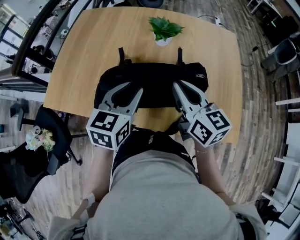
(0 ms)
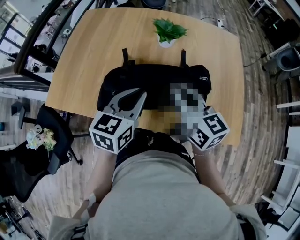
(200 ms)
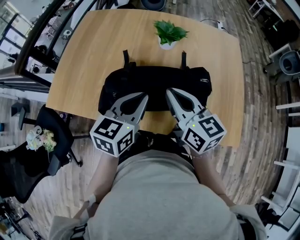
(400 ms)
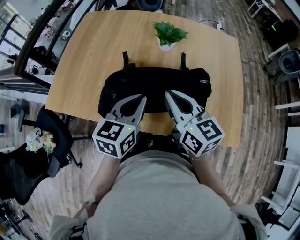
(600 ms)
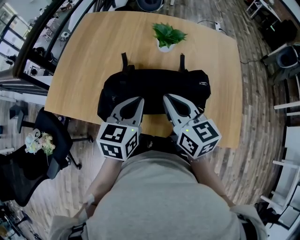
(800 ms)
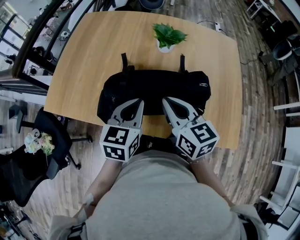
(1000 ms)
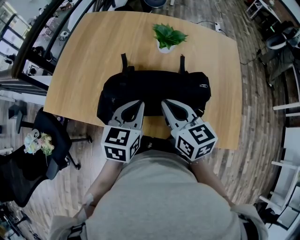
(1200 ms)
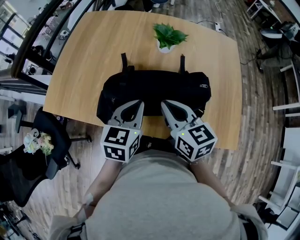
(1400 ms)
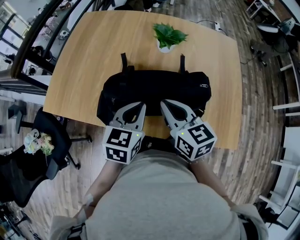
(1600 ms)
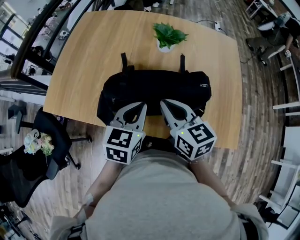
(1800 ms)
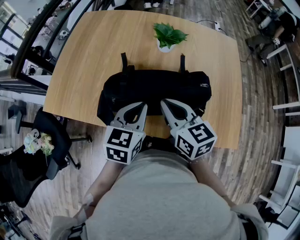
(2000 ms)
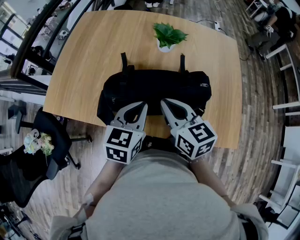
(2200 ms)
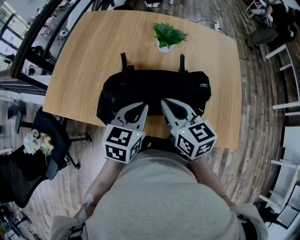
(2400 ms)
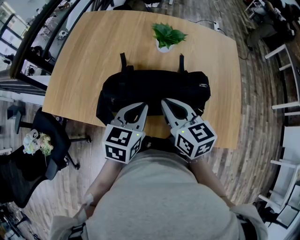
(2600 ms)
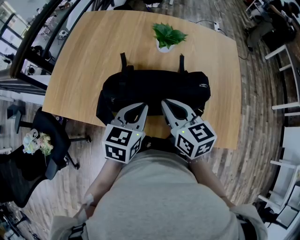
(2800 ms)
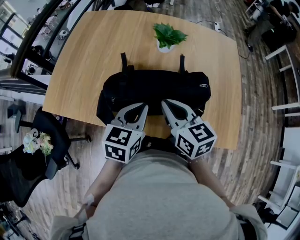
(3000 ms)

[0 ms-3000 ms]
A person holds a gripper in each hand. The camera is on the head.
0 ms to 1600 ms: The left gripper closes up. Meanwhile the right gripper moves to the left, roughly 5 cm.
1600 ms to 3000 ms: The two grippers keep their place.

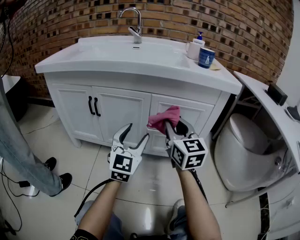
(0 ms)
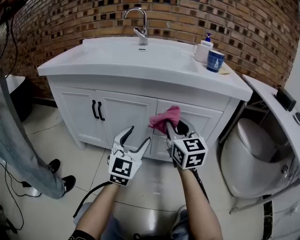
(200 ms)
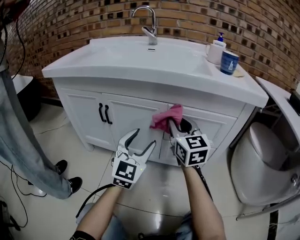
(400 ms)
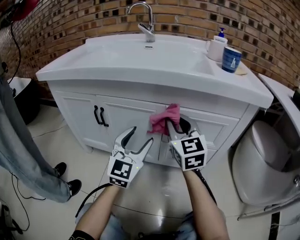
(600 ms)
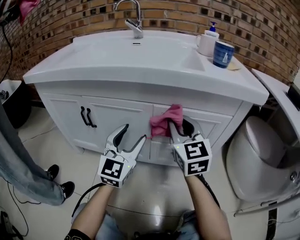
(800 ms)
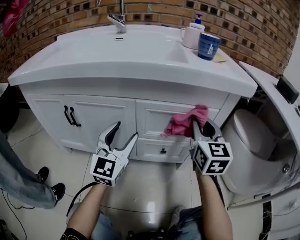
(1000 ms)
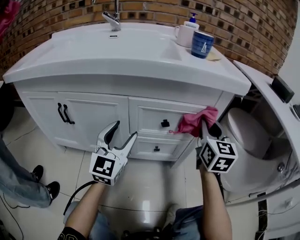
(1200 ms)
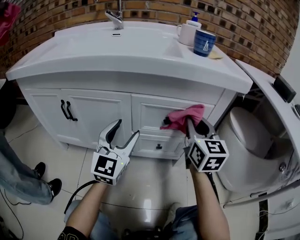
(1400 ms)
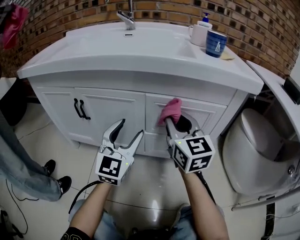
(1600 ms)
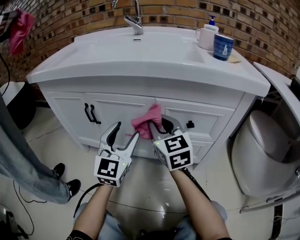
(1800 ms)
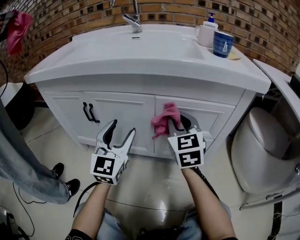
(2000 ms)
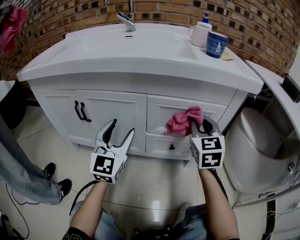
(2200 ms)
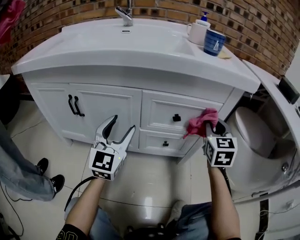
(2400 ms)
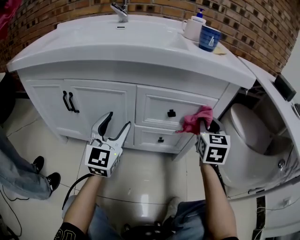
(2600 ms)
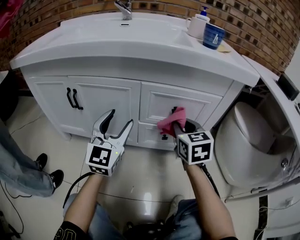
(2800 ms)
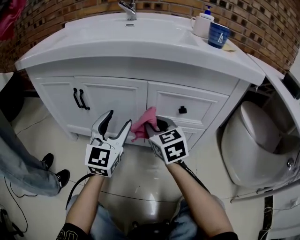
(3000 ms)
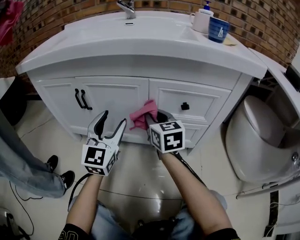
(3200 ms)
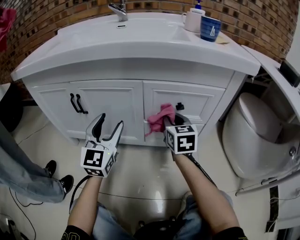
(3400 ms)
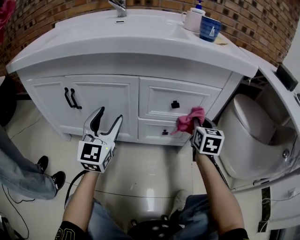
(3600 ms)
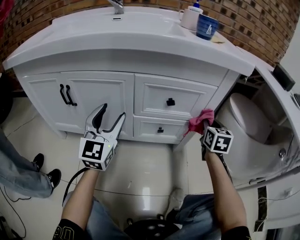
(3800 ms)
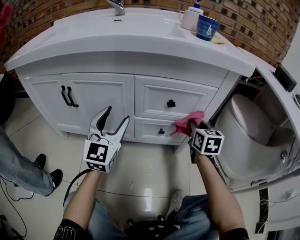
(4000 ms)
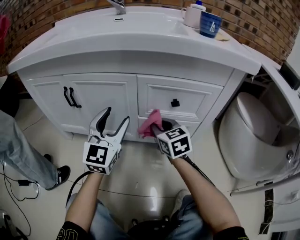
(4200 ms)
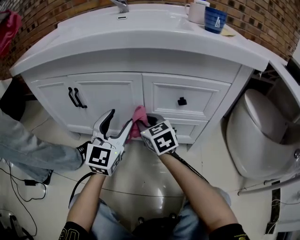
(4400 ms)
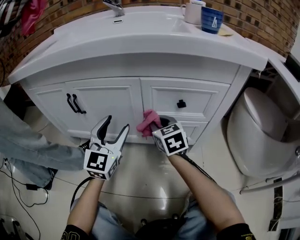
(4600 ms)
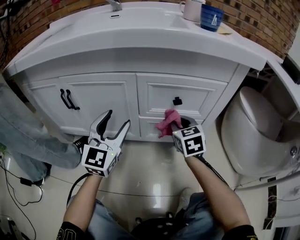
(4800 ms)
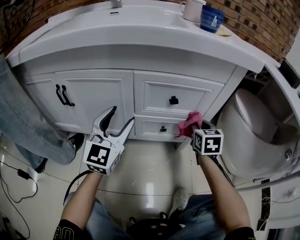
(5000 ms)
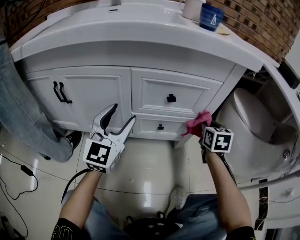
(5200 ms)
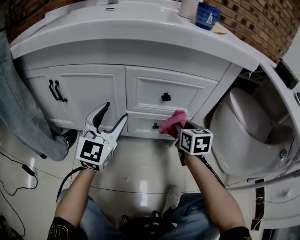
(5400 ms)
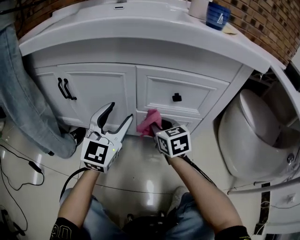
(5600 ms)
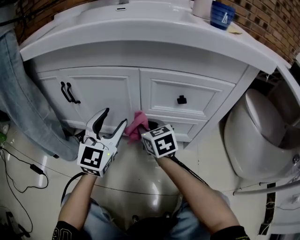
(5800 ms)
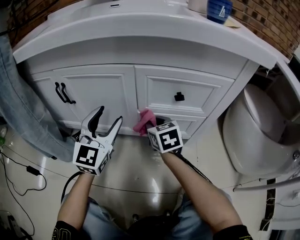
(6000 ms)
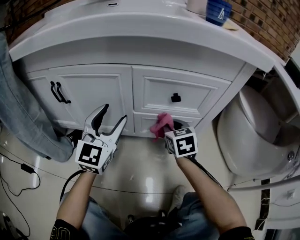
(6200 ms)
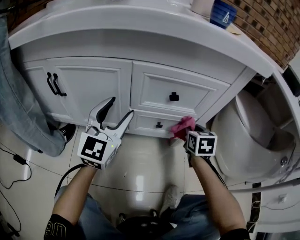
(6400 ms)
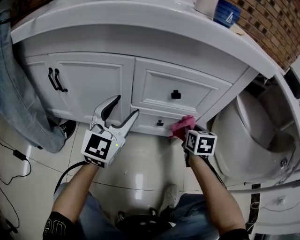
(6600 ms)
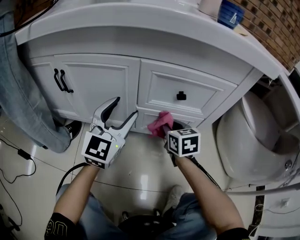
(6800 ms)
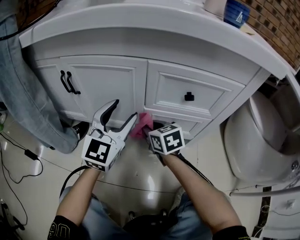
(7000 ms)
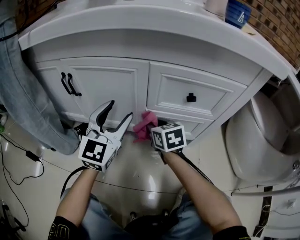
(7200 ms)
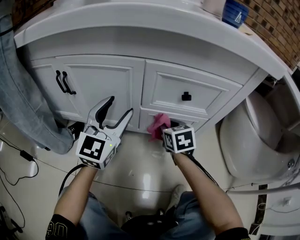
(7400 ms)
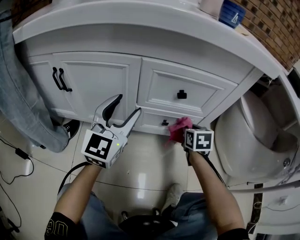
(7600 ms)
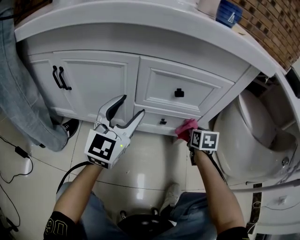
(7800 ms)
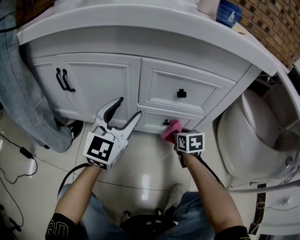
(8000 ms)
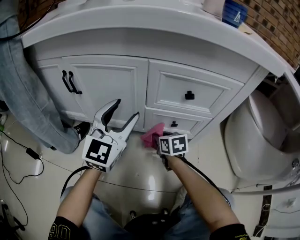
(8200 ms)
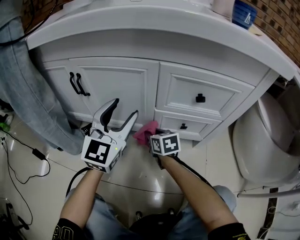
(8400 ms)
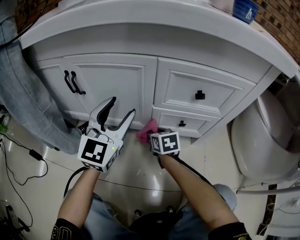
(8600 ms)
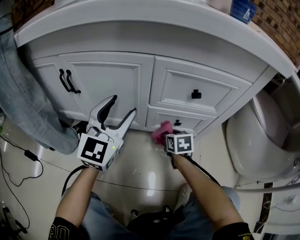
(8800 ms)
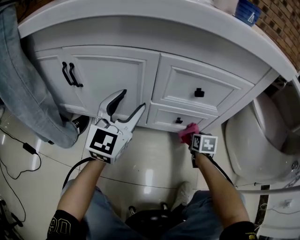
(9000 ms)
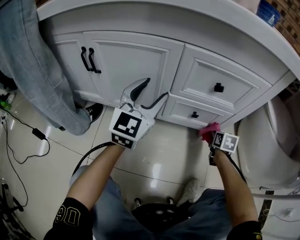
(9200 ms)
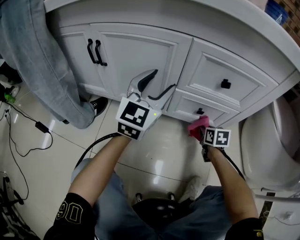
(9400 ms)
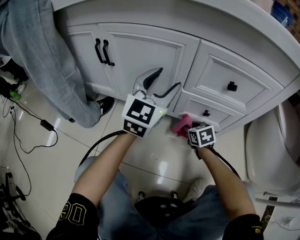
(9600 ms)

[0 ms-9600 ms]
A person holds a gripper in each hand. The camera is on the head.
0 ms to 1600 ms: The right gripper goes left and right, about 25 cm each way, reversing 2 times. The left gripper heads forward, covering some 5 cm.
1600 ms to 3200 ms: The right gripper goes left and right, some 25 cm each way, reversing 2 times. Meanwhile the left gripper goes left and right, approximately 10 cm each way, reversing 2 times.
3200 ms to 4800 ms: The right gripper swings left and right, some 35 cm each way, with 2 reversals; the left gripper heads to the right, covering approximately 5 cm.
4800 ms to 6400 ms: The right gripper moves left and right over roughly 30 cm, changing direction 2 times; the left gripper moves left and right over some 5 cm, changing direction 2 times.
6400 ms to 8000 ms: The right gripper swings left and right, some 25 cm each way, with 2 reversals.
8000 ms to 9600 ms: The left gripper moves forward, approximately 5 cm, while the right gripper goes left and right, approximately 30 cm each way, reversing 2 times, and changes its angle by some 20 degrees.

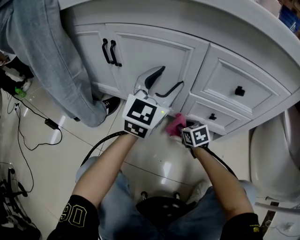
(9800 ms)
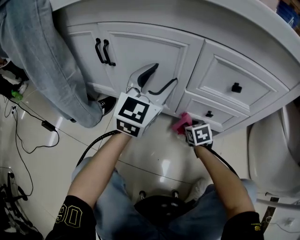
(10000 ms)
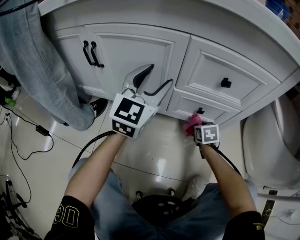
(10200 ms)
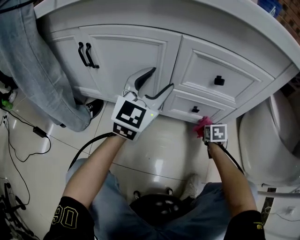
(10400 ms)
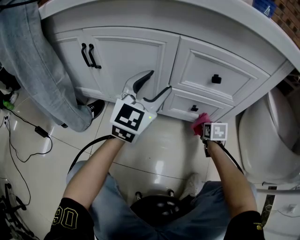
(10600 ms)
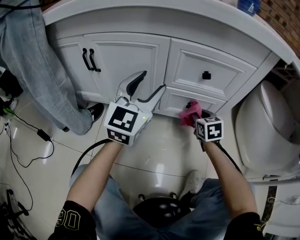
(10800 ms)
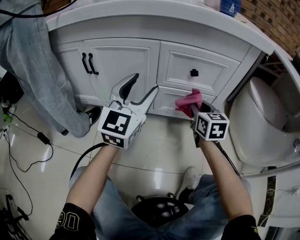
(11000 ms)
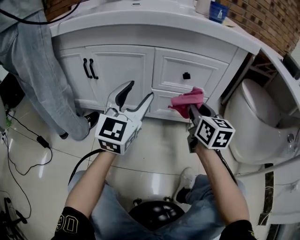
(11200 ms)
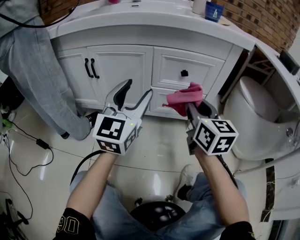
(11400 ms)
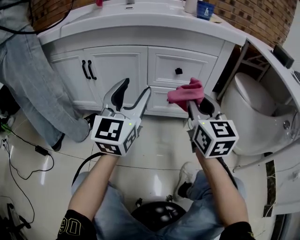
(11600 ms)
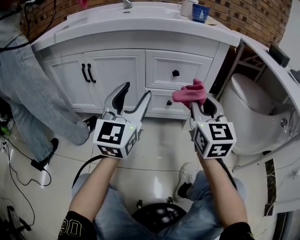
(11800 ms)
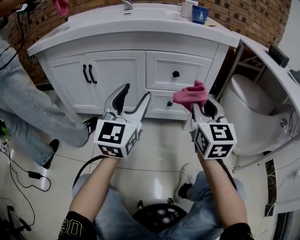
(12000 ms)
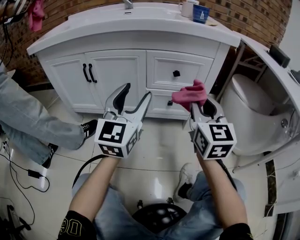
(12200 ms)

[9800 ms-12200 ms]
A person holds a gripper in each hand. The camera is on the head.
9800 ms to 11000 ms: The right gripper goes about 25 cm upward, and rotates approximately 40 degrees, while the left gripper ends up roughly 10 cm from where it was.
11000 ms to 12200 ms: The left gripper shifts roughly 10 cm backward. The right gripper travels upward and backward by approximately 20 cm, and changes its angle by about 20 degrees.

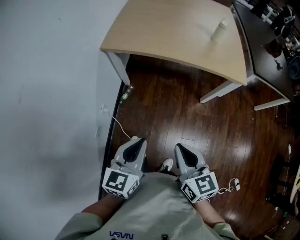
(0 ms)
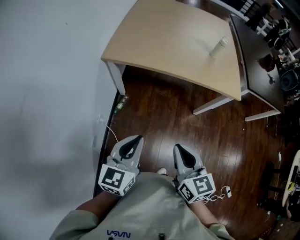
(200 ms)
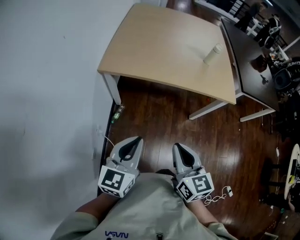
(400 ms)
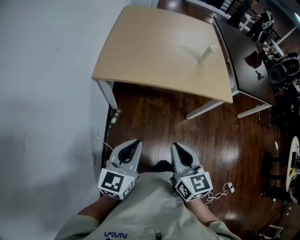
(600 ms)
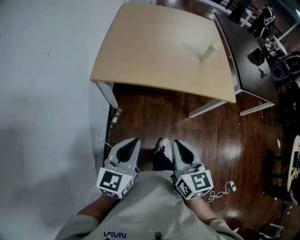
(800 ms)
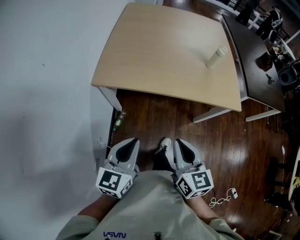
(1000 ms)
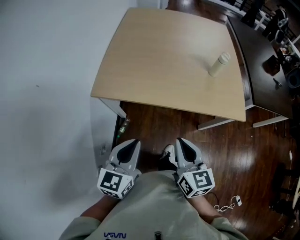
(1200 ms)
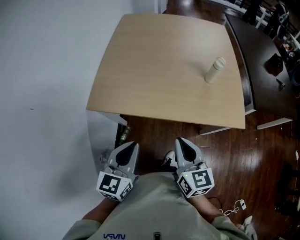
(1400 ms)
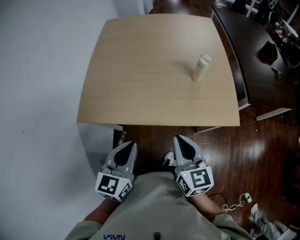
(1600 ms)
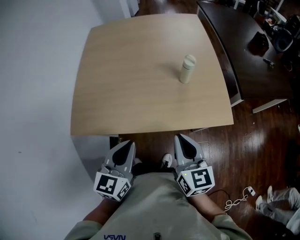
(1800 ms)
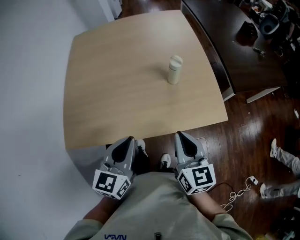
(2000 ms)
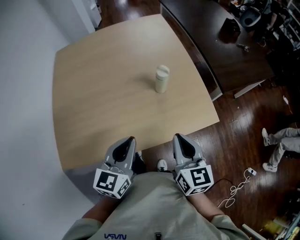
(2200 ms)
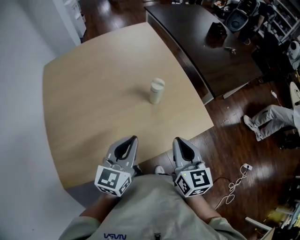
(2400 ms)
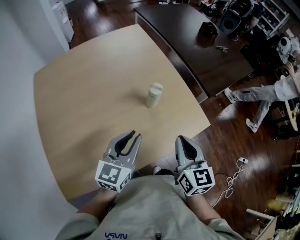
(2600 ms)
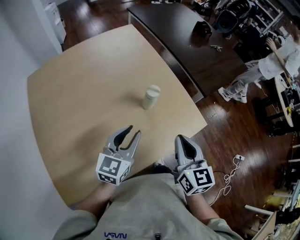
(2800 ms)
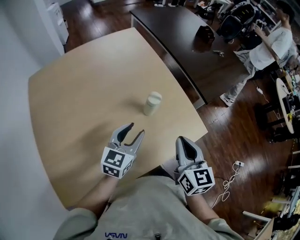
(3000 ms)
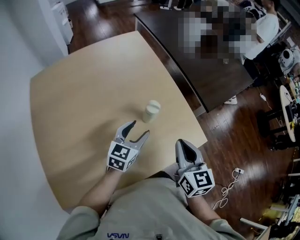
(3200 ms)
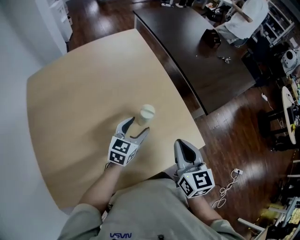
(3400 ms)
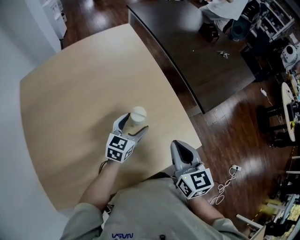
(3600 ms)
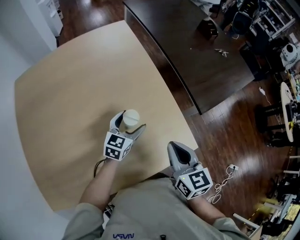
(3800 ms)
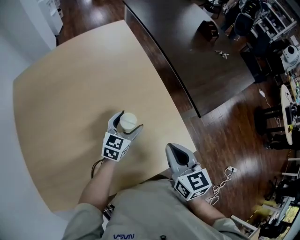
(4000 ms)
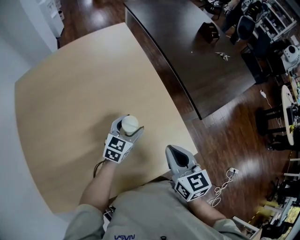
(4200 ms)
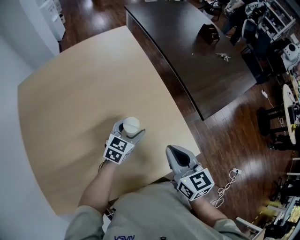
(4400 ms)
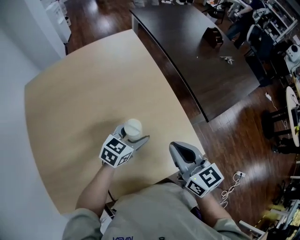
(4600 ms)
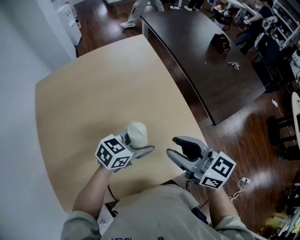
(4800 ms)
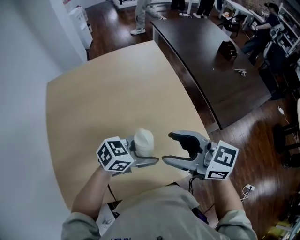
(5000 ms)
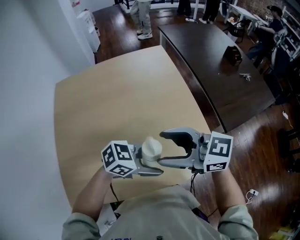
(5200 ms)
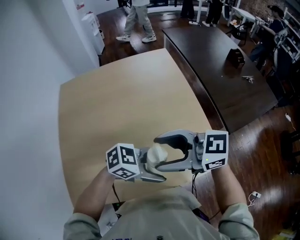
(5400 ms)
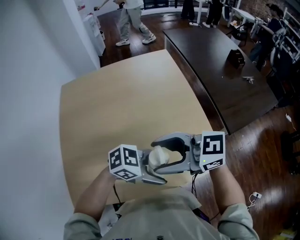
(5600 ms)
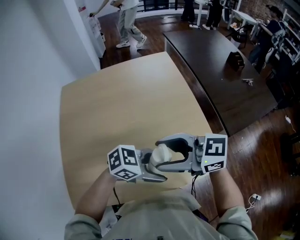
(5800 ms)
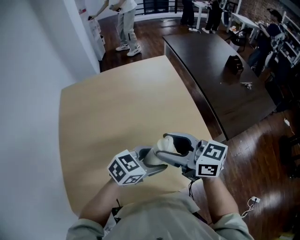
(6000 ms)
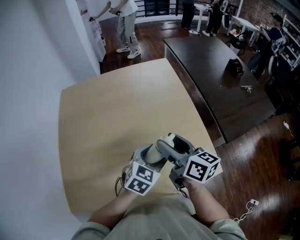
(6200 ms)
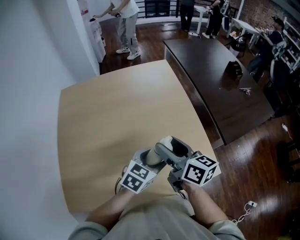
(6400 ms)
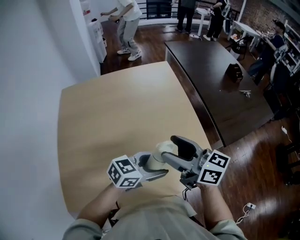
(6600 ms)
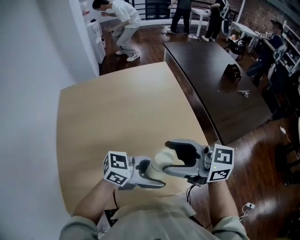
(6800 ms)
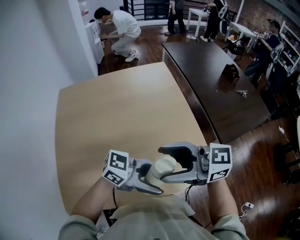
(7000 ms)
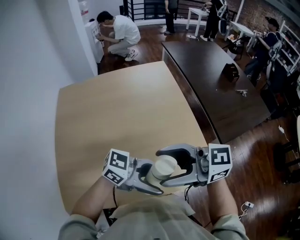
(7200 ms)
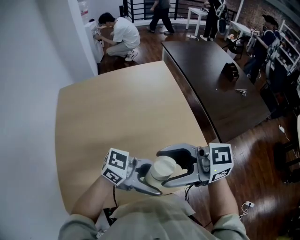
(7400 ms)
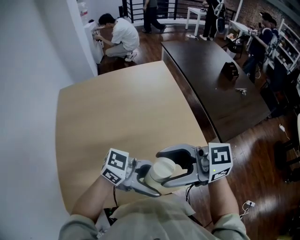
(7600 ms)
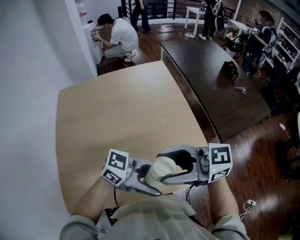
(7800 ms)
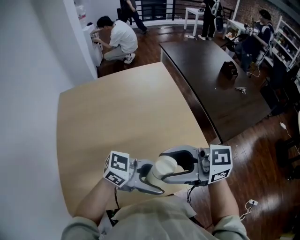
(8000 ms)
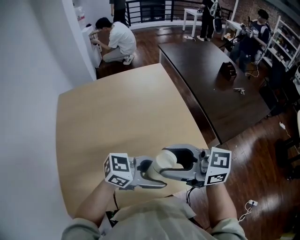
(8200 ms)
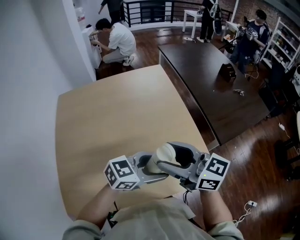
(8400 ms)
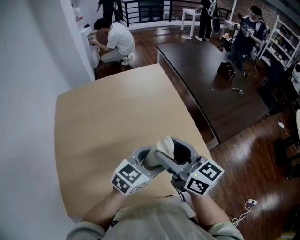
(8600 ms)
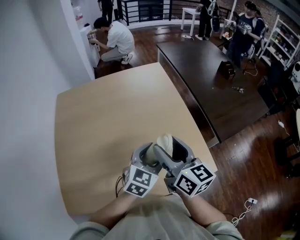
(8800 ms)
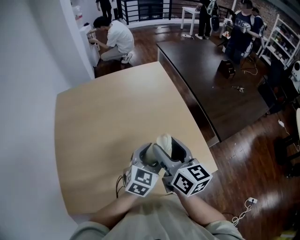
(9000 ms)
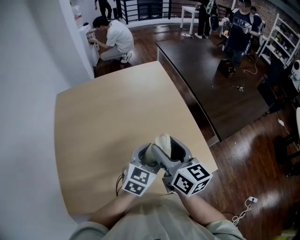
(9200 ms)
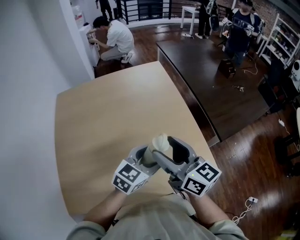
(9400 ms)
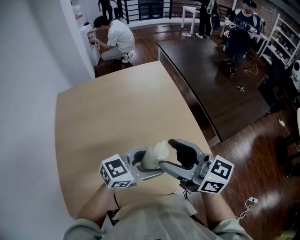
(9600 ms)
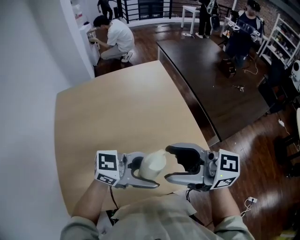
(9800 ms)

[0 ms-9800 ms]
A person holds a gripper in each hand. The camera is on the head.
0 ms to 1400 ms: Both grippers move forward, roughly 25 cm.
1400 ms to 2800 ms: The left gripper moves approximately 35 cm, and turns by approximately 40 degrees, while the right gripper moves some 20 cm, and rotates roughly 40 degrees.
2800 ms to 4200 ms: The right gripper heads forward and downward, covering approximately 10 cm, while the left gripper shifts roughly 20 cm forward and downward, and opens up.
4200 ms to 5600 ms: The left gripper ends up roughly 25 cm from where it was, and swivels about 50 degrees. Meanwhile the right gripper shifts by some 25 cm, changes its angle by some 80 degrees, and opens.
5600 ms to 7000 ms: The left gripper is displaced upward by roughly 5 cm, and swivels roughly 20 degrees.
7000 ms to 8400 ms: The left gripper ends up approximately 5 cm from where it was, and rotates roughly 30 degrees, while the right gripper changes its angle by some 30 degrees.
8400 ms to 9800 ms: The right gripper moves about 5 cm. Meanwhile the left gripper moves roughly 5 cm, and turns by about 20 degrees.
